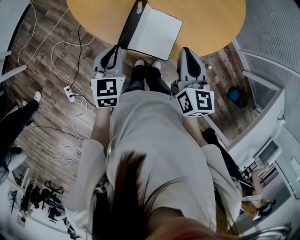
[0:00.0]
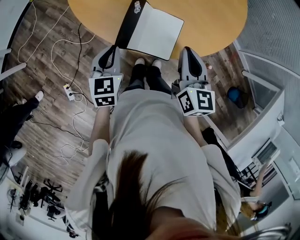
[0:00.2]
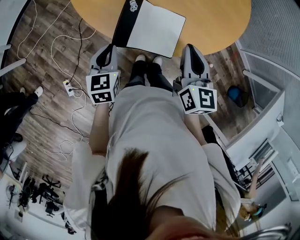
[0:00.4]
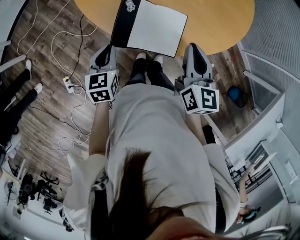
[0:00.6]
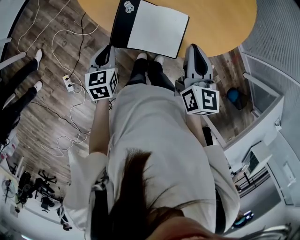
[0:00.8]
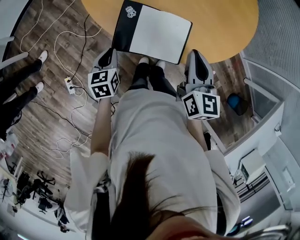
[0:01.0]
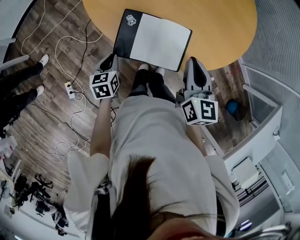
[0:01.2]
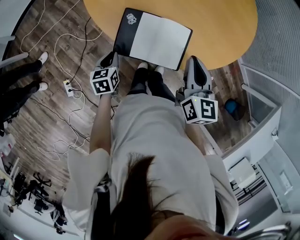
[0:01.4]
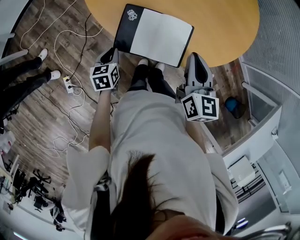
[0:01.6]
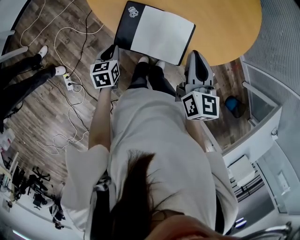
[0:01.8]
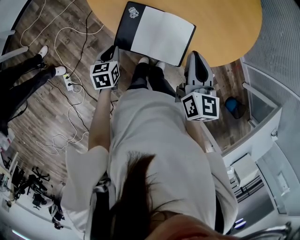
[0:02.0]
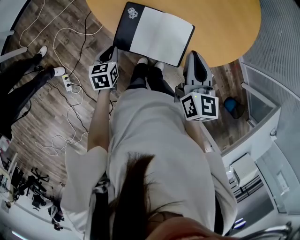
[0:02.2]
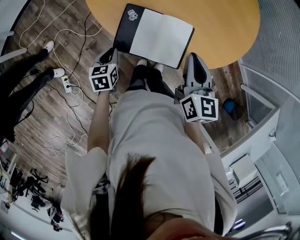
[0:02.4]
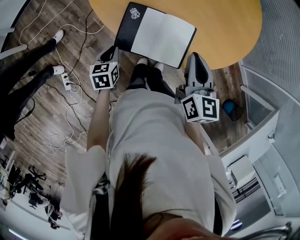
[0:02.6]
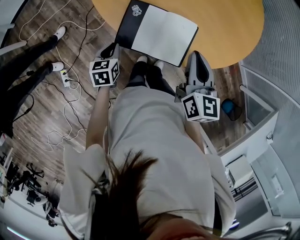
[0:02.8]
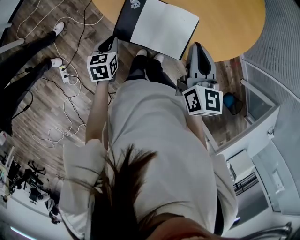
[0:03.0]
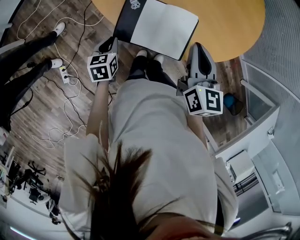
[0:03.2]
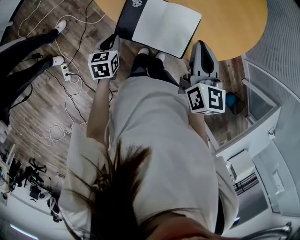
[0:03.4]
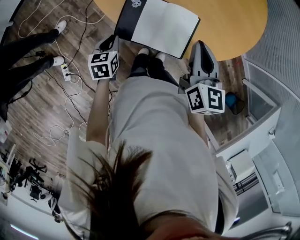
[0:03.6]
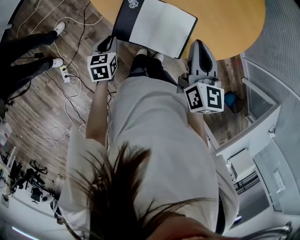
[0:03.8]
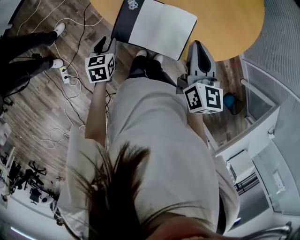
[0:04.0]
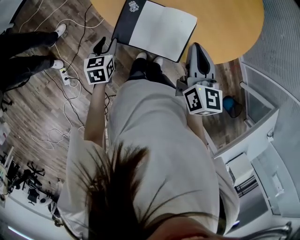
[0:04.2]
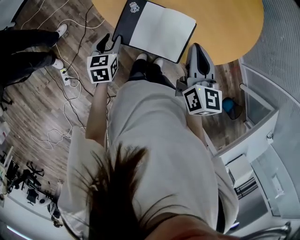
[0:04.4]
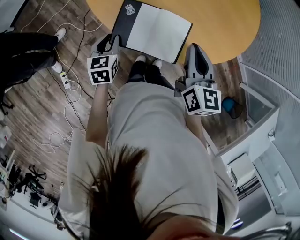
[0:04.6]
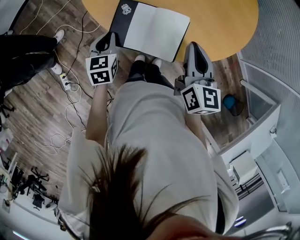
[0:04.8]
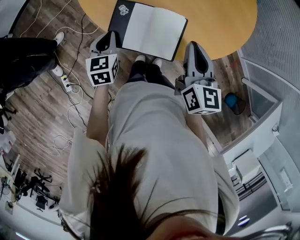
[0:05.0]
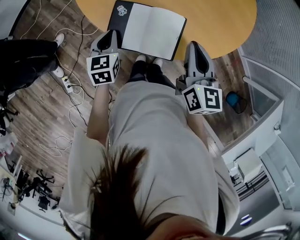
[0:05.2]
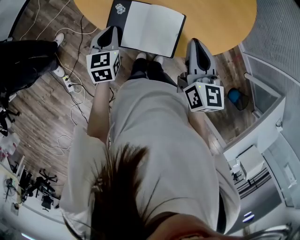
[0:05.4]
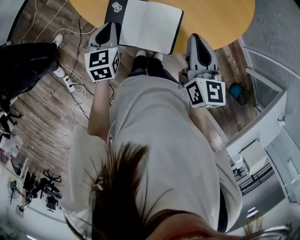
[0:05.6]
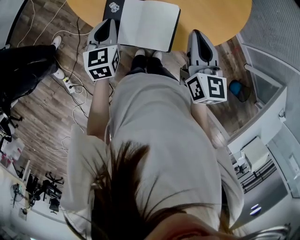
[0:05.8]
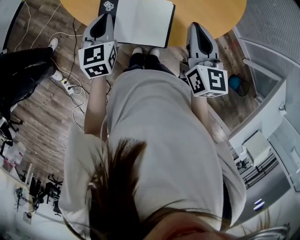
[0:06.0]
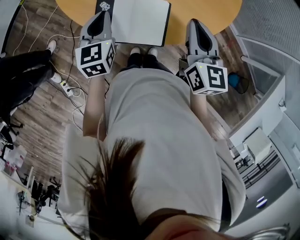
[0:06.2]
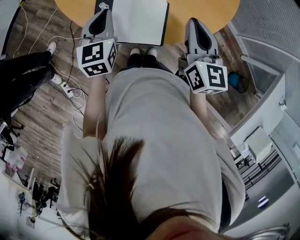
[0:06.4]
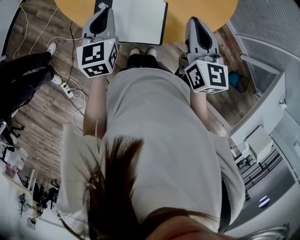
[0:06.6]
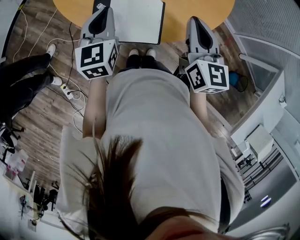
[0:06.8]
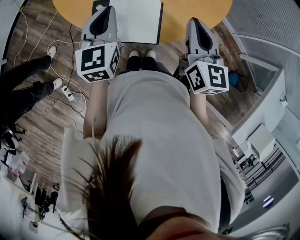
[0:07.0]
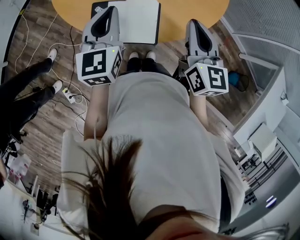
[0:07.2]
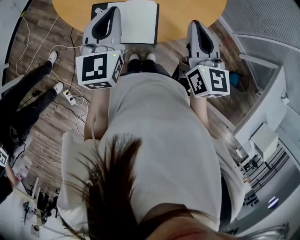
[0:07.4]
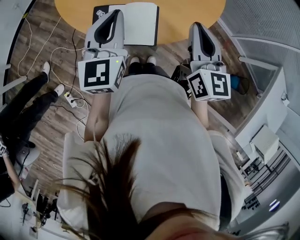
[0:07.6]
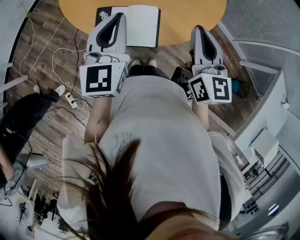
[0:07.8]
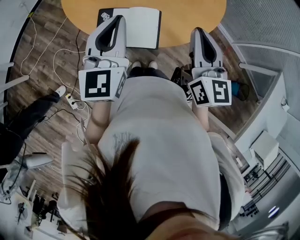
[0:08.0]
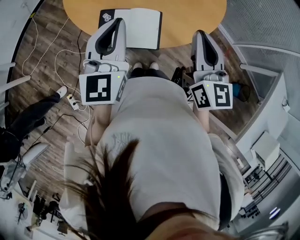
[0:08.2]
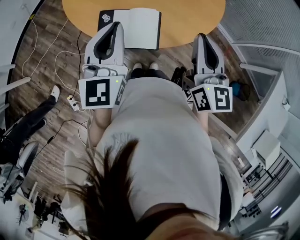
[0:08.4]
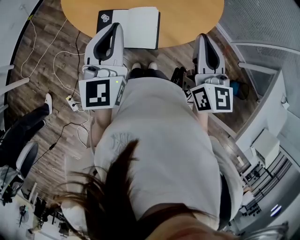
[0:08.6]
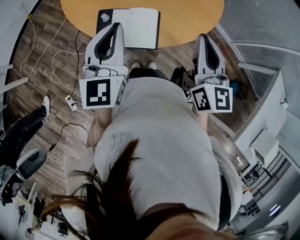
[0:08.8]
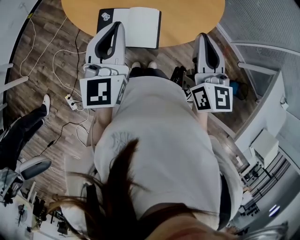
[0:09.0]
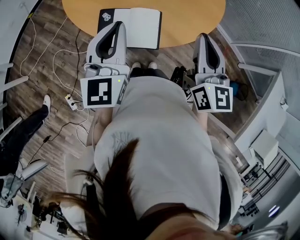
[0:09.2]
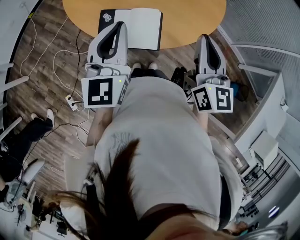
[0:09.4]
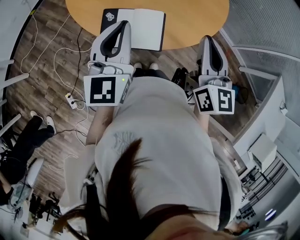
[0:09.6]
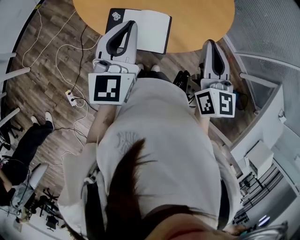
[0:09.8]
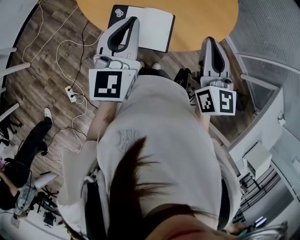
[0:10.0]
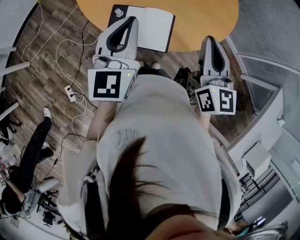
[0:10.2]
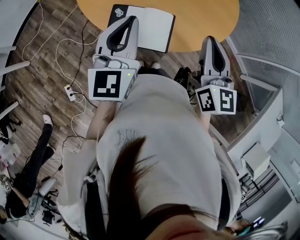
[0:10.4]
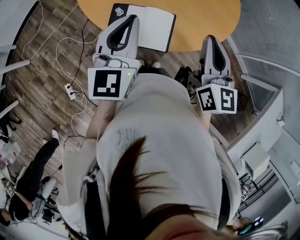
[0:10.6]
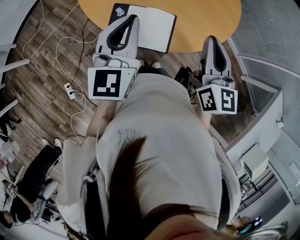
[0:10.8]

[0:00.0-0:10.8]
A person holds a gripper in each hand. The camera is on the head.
0:00.0 to 0:01.6: The left gripper travels downward and to the left by roughly 15 cm, and turns by approximately 30 degrees.
0:01.6 to 0:03.0: Neither gripper changes place.
0:03.0 to 0:04.6: The left gripper shifts by some 5 cm.
0:04.6 to 0:06.2: The right gripper goes about 5 cm to the right; the left gripper travels upward, to the right and forward by about 15 cm, and closes its fingers.
0:06.2 to 0:07.8: The right gripper travels upward and backward by about 10 cm, while the left gripper goes about 20 cm upward and to the right, and swivels about 20 degrees.
0:07.8 to 0:10.8: The grippers move only a little.

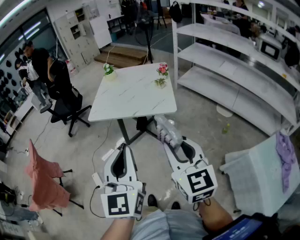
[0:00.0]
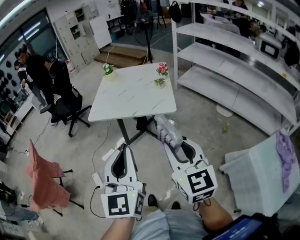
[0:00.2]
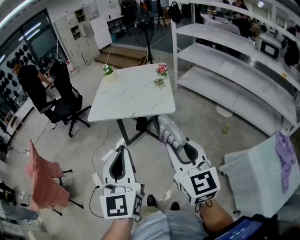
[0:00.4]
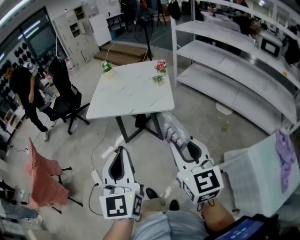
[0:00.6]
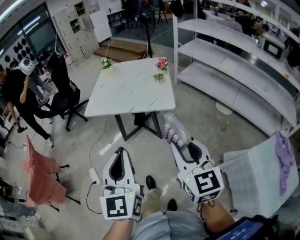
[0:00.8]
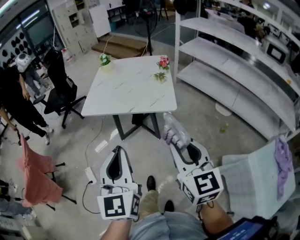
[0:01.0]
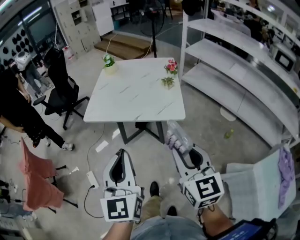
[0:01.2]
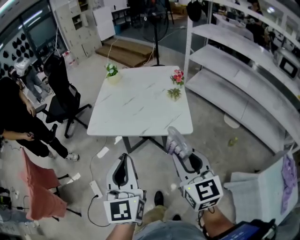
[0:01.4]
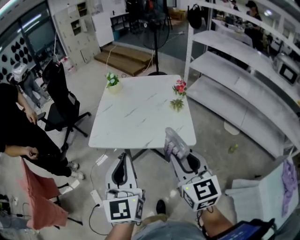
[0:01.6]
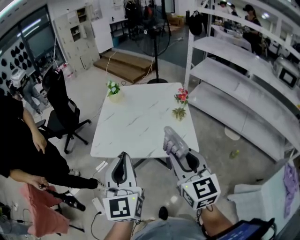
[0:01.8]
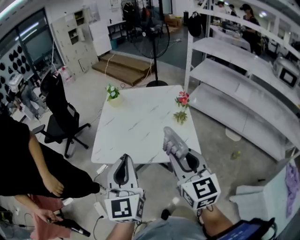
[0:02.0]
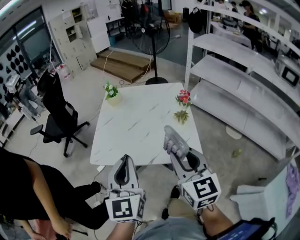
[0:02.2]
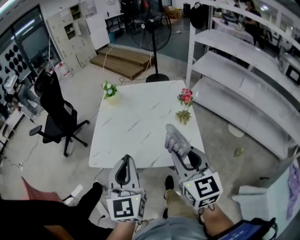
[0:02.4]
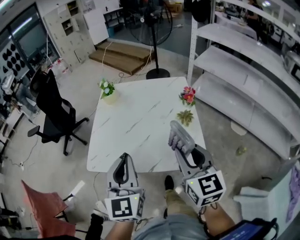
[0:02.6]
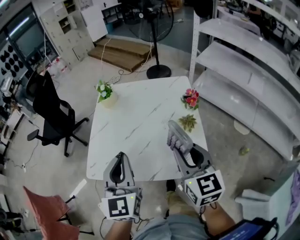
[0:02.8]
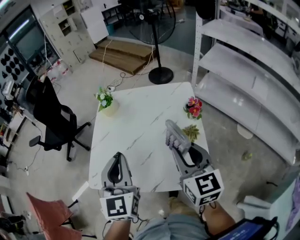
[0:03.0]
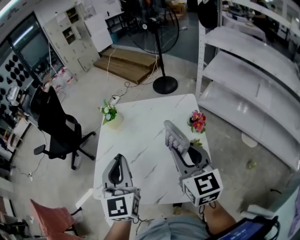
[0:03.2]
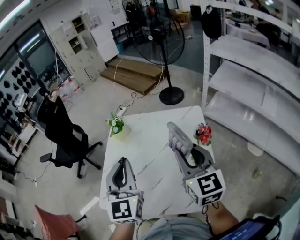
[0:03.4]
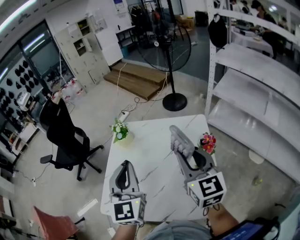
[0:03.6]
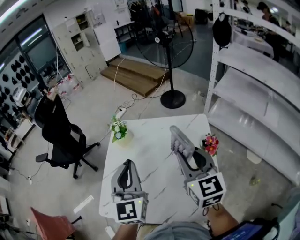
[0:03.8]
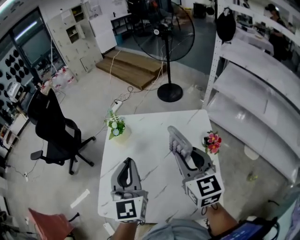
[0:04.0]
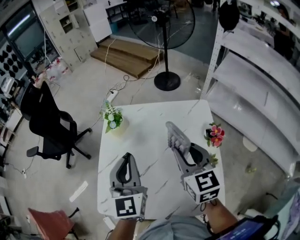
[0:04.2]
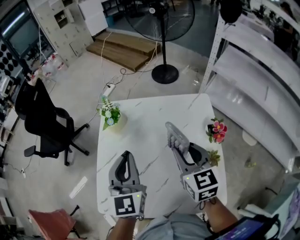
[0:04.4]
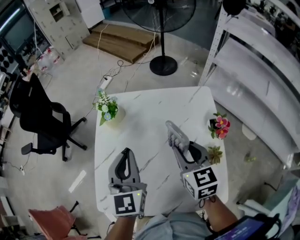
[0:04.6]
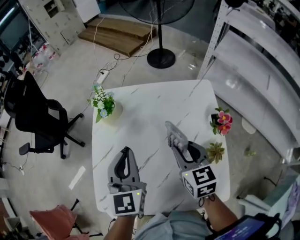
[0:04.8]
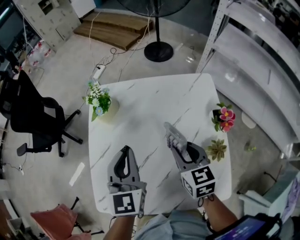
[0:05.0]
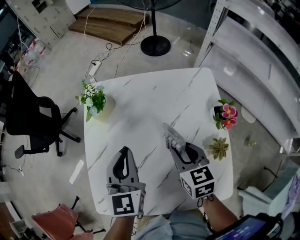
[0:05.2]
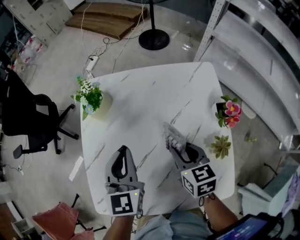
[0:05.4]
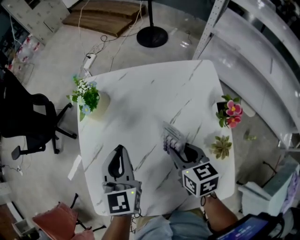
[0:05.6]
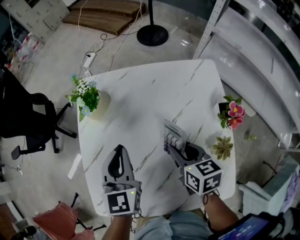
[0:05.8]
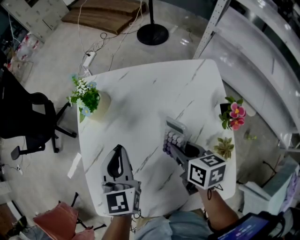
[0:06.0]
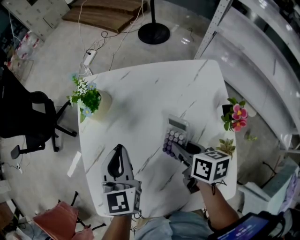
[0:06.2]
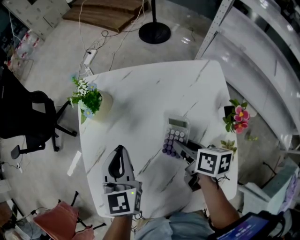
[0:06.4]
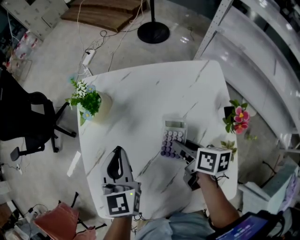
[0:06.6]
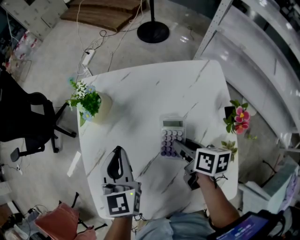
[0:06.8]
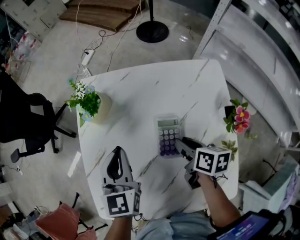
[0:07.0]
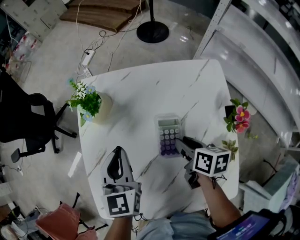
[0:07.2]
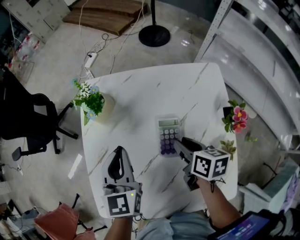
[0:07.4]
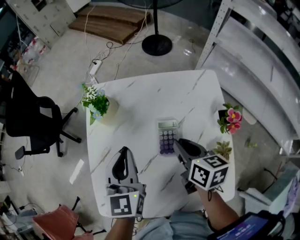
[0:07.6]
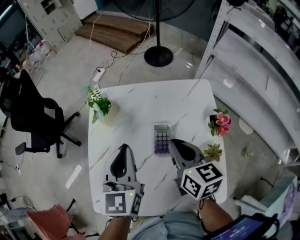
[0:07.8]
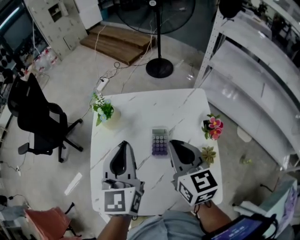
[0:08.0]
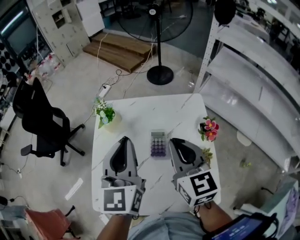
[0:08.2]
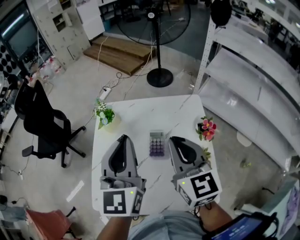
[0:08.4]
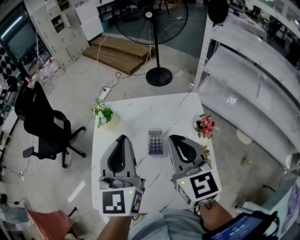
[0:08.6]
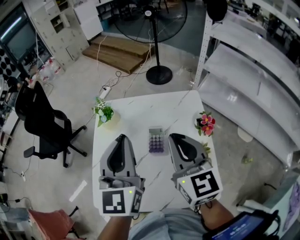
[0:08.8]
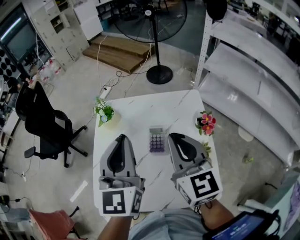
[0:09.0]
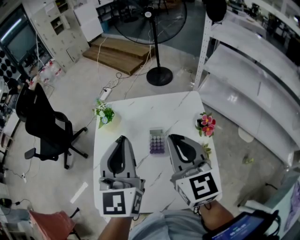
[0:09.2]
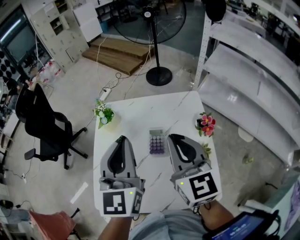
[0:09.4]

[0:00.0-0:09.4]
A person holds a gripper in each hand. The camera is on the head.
0:00.0 to 0:01.6: The grippers both shift forward by roughly 25 cm.
0:01.6 to 0:03.2: The two grippers go some 35 cm forward.
0:03.2 to 0:04.8: The right gripper heads downward and forward, covering roughly 20 cm, and changes its angle by some 20 degrees, while the left gripper moves forward and downward, about 20 cm.
0:04.8 to 0:06.2: The two grippers go roughly 10 cm downward. The right gripper swivels roughly 40 degrees.
0:06.2 to 0:07.8: The two grippers go some 10 cm upward. The right gripper changes its angle by about 30 degrees, and closes its fingers.
0:07.8 to 0:09.4: The left gripper goes approximately 15 cm upward and backward, while the right gripper shifts some 15 cm upward, and turns by about 30 degrees.

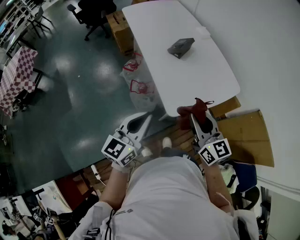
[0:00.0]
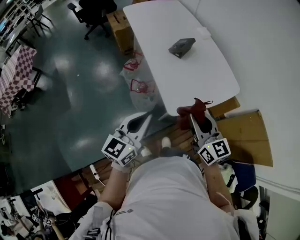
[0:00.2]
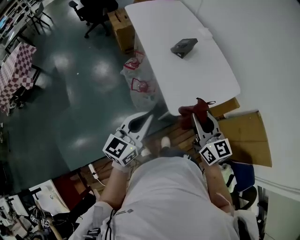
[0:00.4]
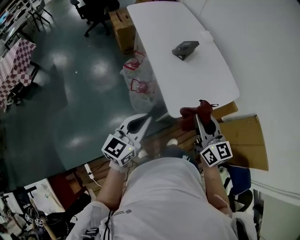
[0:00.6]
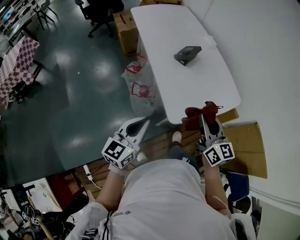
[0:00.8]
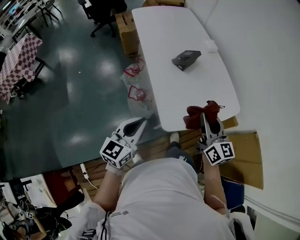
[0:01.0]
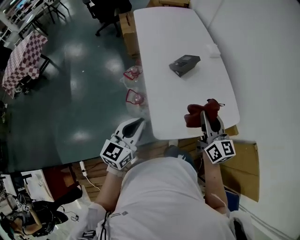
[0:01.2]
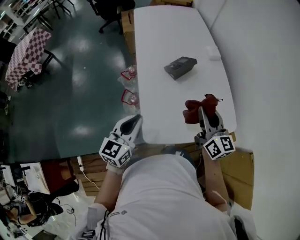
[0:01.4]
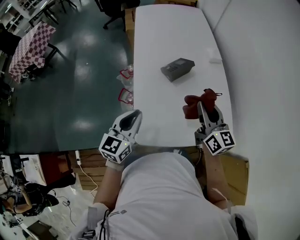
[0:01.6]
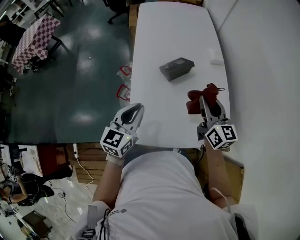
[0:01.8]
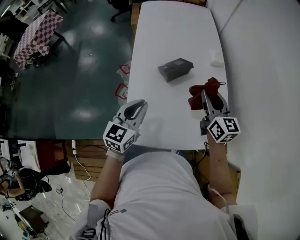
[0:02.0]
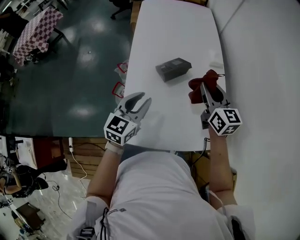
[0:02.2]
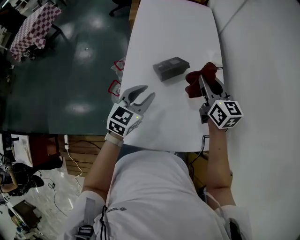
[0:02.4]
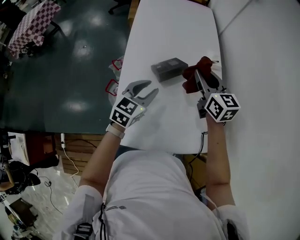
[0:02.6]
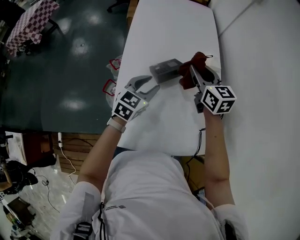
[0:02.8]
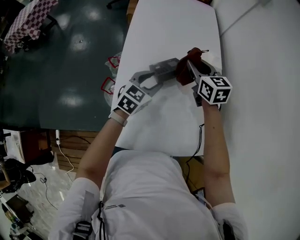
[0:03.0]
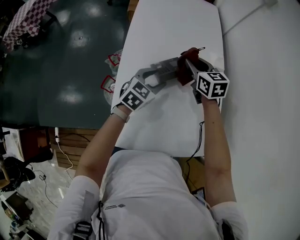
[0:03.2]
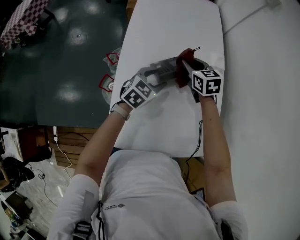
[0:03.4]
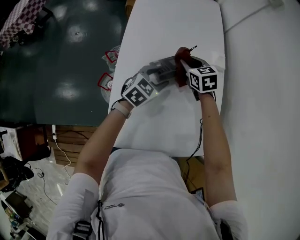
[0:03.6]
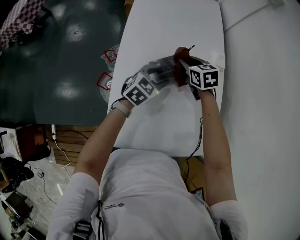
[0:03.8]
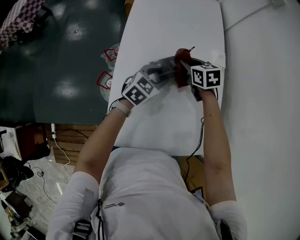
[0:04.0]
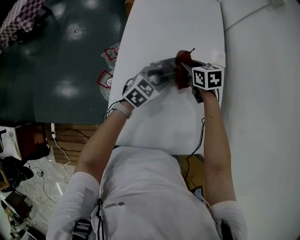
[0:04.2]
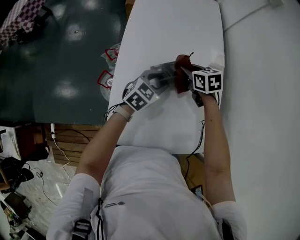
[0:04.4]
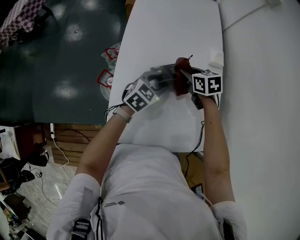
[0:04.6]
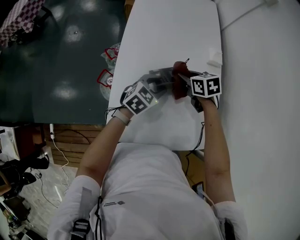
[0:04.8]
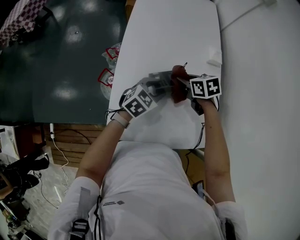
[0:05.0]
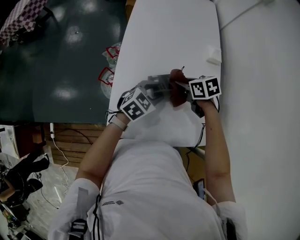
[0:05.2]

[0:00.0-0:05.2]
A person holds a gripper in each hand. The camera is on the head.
0:00.0 to 0:01.8: Both grippers travel together forward and to the right, roughly 30 cm. The left gripper turns by about 30 degrees.
0:01.8 to 0:03.4: The left gripper is displaced forward, downward and to the right by some 25 cm, changes its angle by some 30 degrees, and opens up; the right gripper heads forward and downward, covering approximately 25 cm, and rotates about 40 degrees.
0:03.4 to 0:05.2: The grippers both shift backward by approximately 10 cm. The right gripper swivels roughly 30 degrees.
